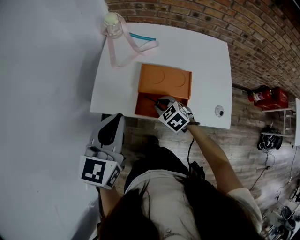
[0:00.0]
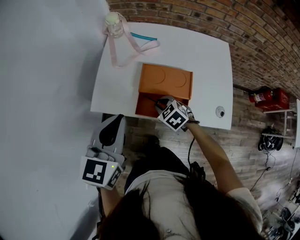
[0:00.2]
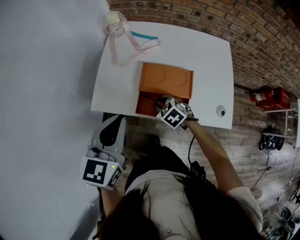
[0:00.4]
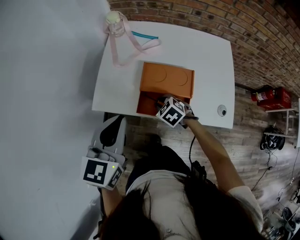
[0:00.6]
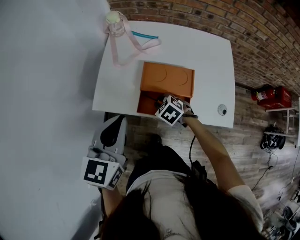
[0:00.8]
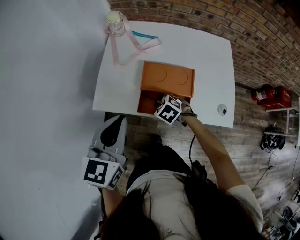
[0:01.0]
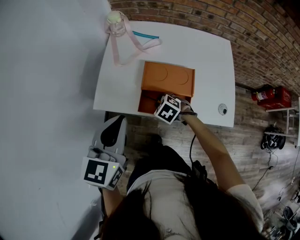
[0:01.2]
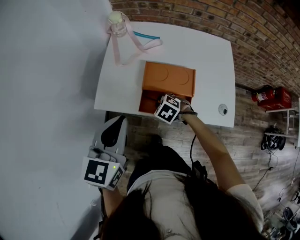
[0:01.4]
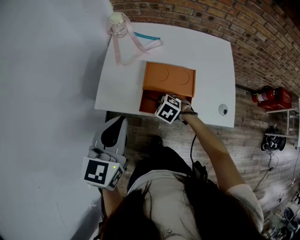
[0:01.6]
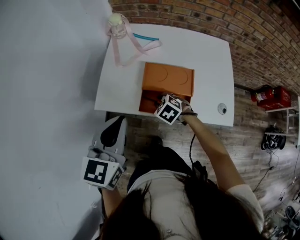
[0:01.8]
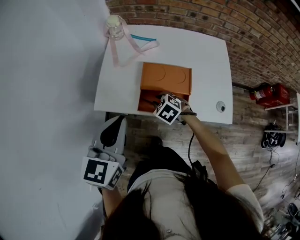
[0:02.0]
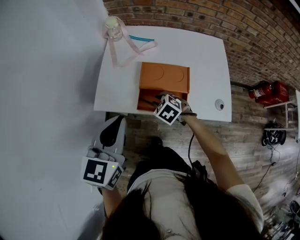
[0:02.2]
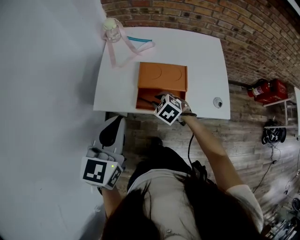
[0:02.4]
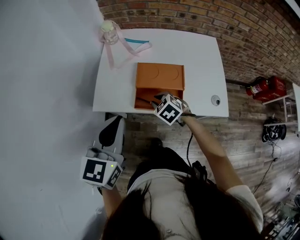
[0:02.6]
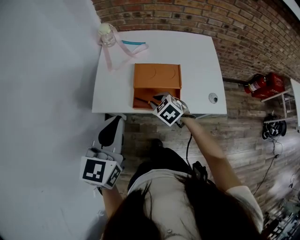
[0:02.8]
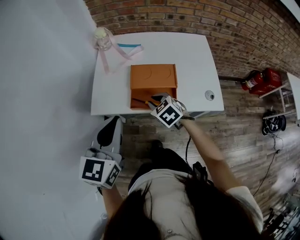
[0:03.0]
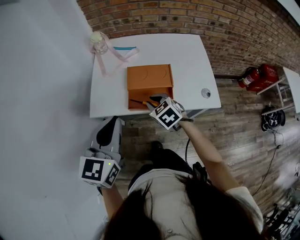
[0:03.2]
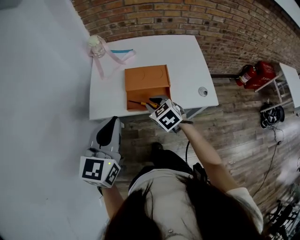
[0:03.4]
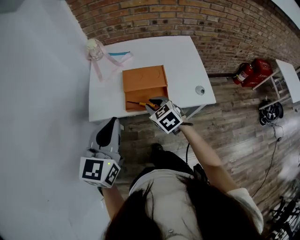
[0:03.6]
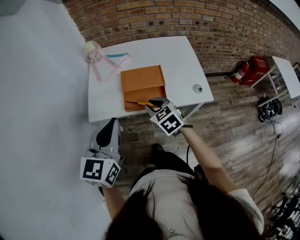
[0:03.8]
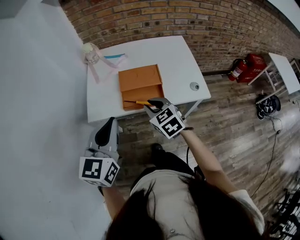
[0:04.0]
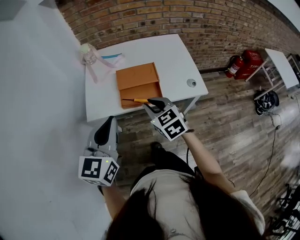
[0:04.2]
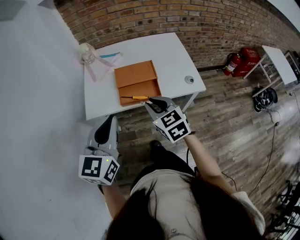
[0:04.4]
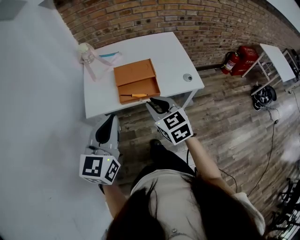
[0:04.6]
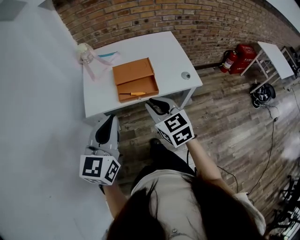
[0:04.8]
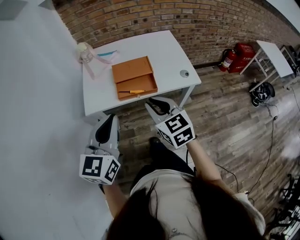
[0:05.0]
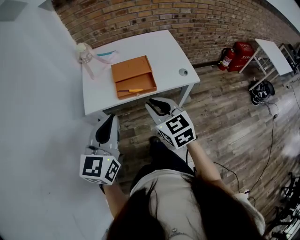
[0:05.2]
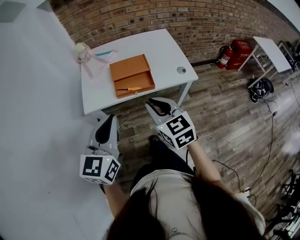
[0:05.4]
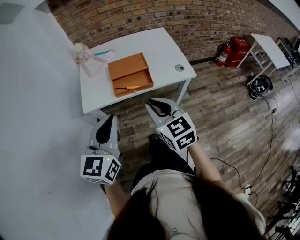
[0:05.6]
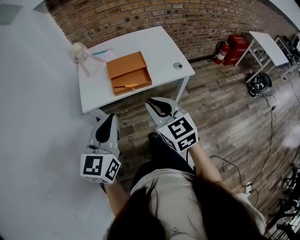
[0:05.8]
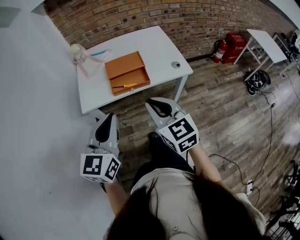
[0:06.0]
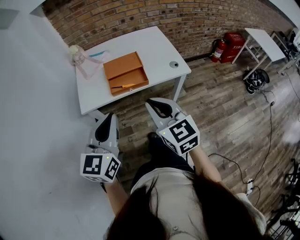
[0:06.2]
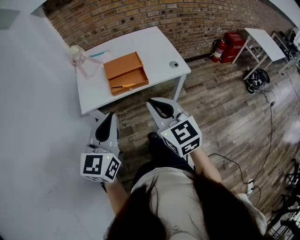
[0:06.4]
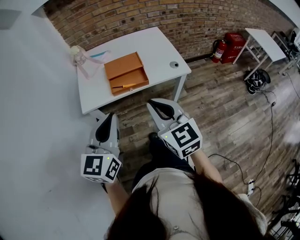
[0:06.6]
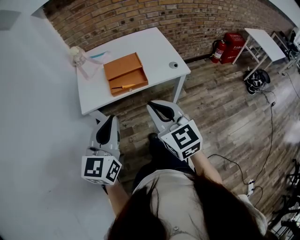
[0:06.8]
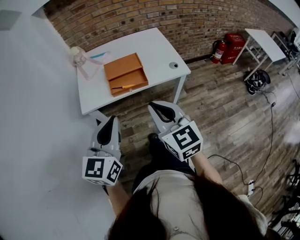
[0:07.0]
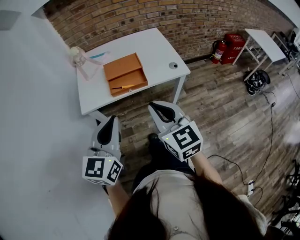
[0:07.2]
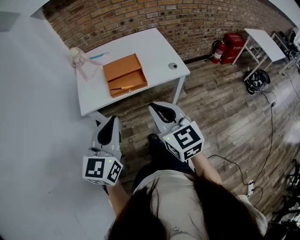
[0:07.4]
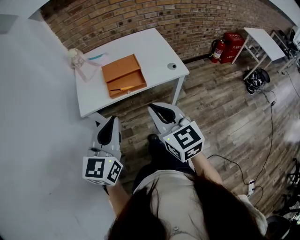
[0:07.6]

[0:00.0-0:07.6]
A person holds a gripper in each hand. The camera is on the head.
0:00.0 to 0:01.6: There are only small adjustments of the grippers.
0:01.6 to 0:03.0: The left gripper shifts approximately 5 cm backward; the right gripper is displaced upward by about 10 cm, and rotates approximately 30 degrees.
0:03.0 to 0:04.6: The left gripper moves backward, some 10 cm, while the right gripper moves backward and upward, approximately 20 cm, and swivels some 30 degrees.
0:04.6 to 0:06.0: The right gripper moves backward and upward, about 10 cm. Meanwhile the left gripper goes about 5 cm backward.
0:06.0 to 0:07.6: The grippers stay close to where they were, moving slightly.

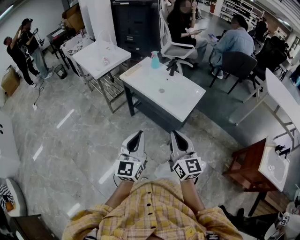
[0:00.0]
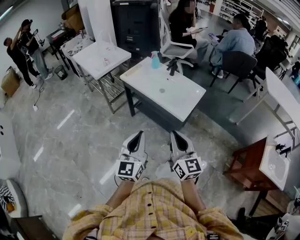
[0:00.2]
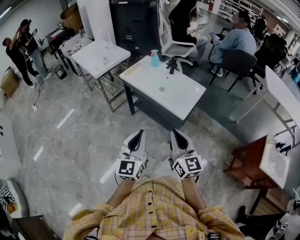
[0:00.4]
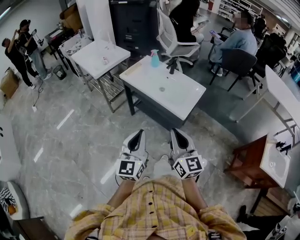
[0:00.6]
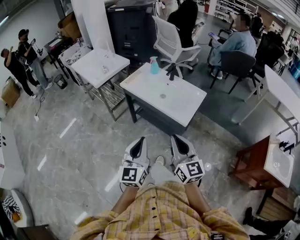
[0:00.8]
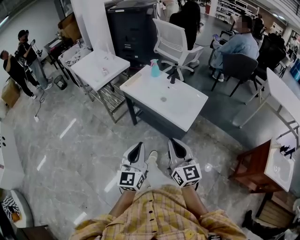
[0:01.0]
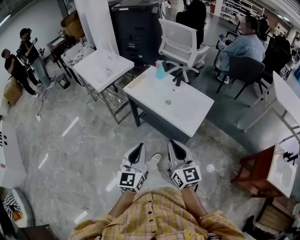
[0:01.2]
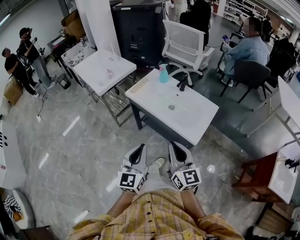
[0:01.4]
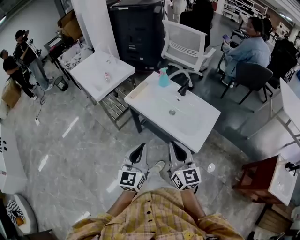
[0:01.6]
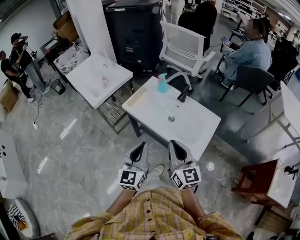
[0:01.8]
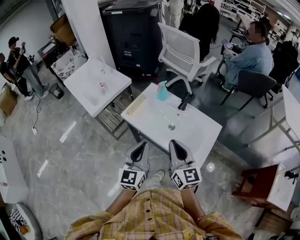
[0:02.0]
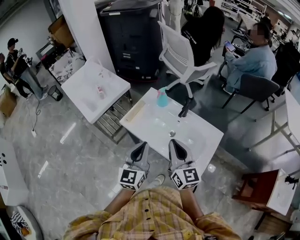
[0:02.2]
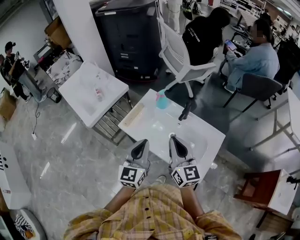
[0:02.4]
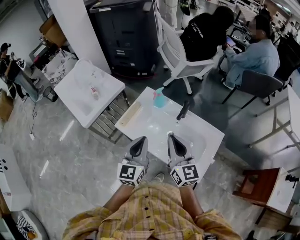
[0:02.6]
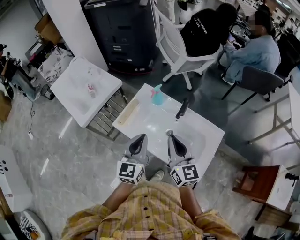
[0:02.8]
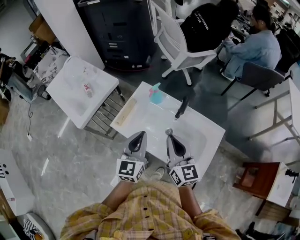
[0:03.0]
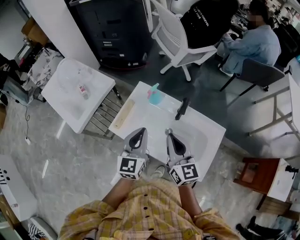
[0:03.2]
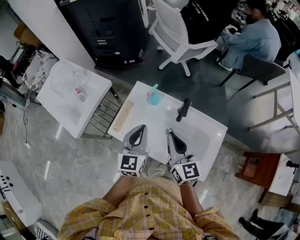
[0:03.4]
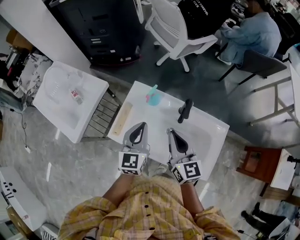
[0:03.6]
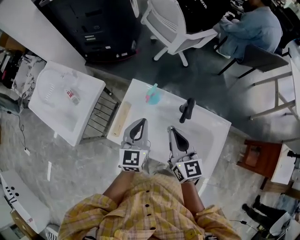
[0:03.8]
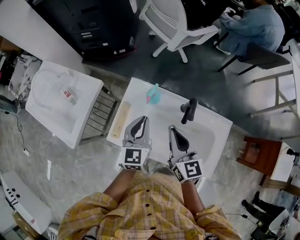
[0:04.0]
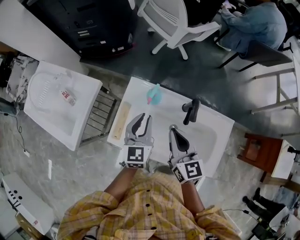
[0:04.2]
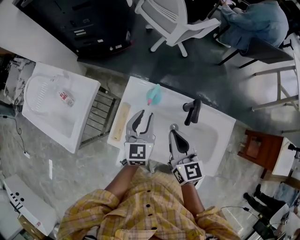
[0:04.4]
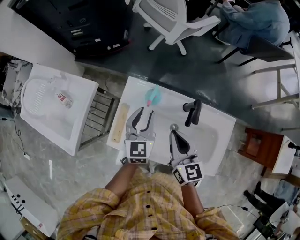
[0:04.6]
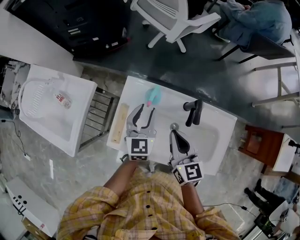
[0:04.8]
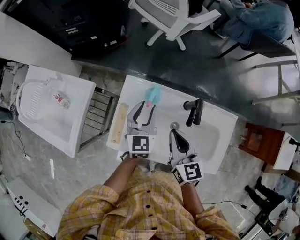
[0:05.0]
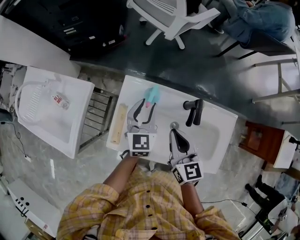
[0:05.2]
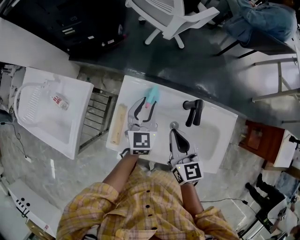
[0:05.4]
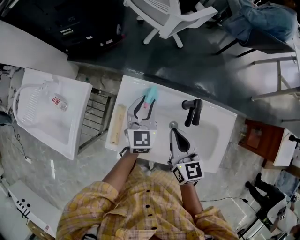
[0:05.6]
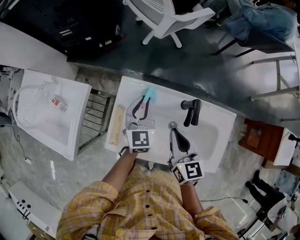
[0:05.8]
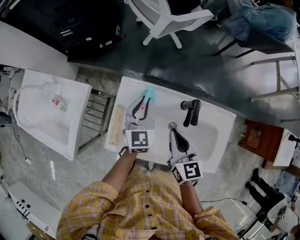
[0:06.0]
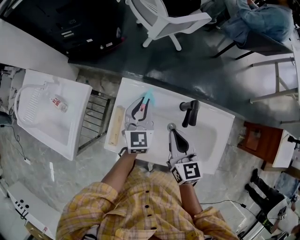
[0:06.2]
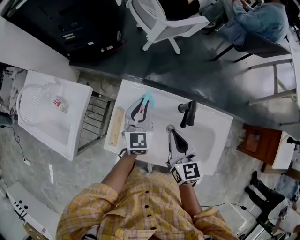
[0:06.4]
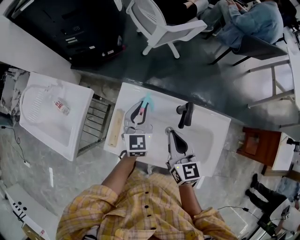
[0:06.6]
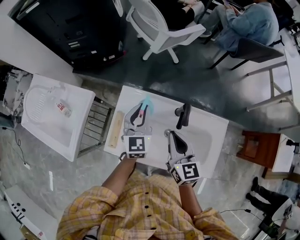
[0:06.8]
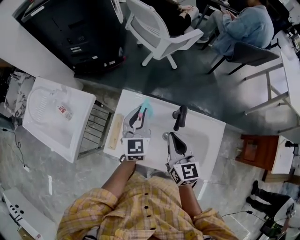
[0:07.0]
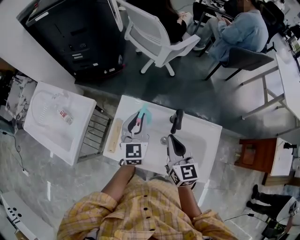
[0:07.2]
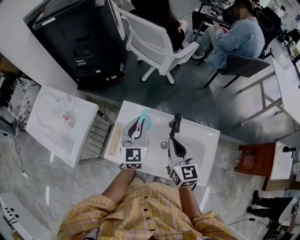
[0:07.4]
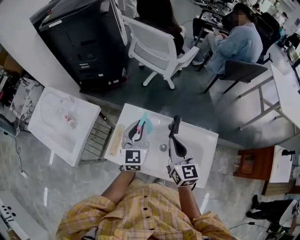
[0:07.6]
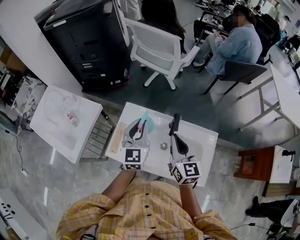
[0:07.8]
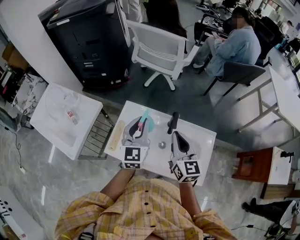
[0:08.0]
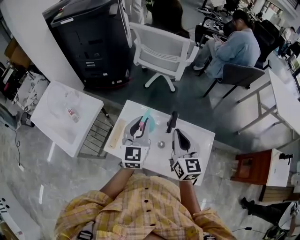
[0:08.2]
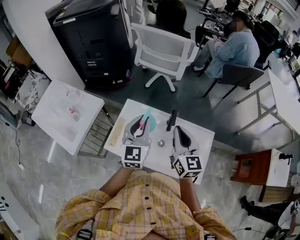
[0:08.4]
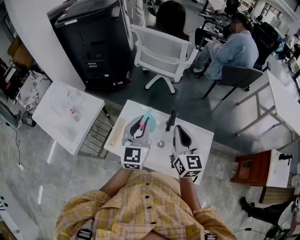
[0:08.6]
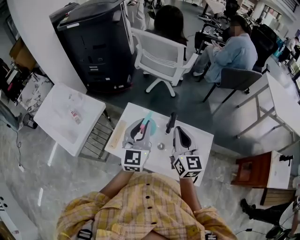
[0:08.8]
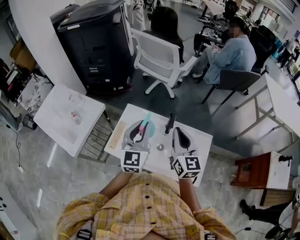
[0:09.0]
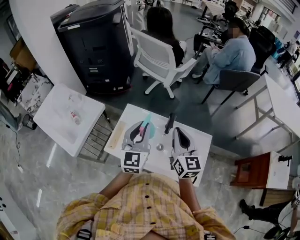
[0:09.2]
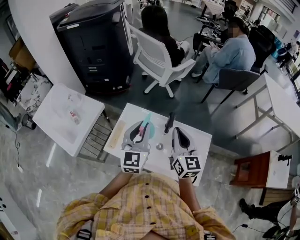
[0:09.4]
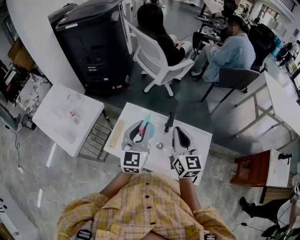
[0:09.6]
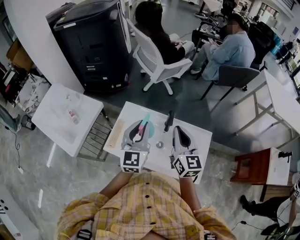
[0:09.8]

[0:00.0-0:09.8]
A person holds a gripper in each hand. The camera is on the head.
0:00.0 to 0:01.4: The left gripper shifts approximately 15 cm forward. The right gripper goes about 15 cm forward and to the left.
0:01.4 to 0:02.8: Both grippers move forward, about 35 cm.
0:02.8 to 0:04.2: The two grippers go about 20 cm forward and downward.
0:04.2 to 0:05.6: The right gripper shifts by about 5 cm. The left gripper moves forward, roughly 10 cm, and opens up.
0:05.6 to 0:07.0: The two grippers go about 5 cm upward.
0:07.0 to 0:08.4: The left gripper travels upward and backward by roughly 15 cm. Meanwhile the right gripper heads upward, covering some 10 cm.
0:08.4 to 0:09.8: There are only small adjustments of the grippers.

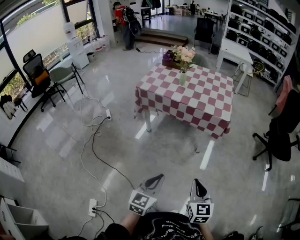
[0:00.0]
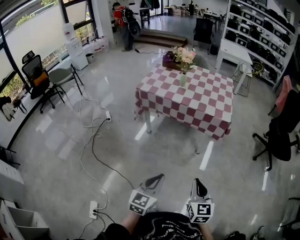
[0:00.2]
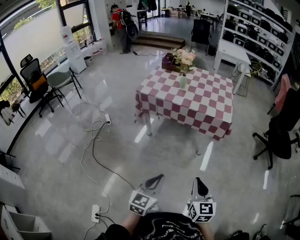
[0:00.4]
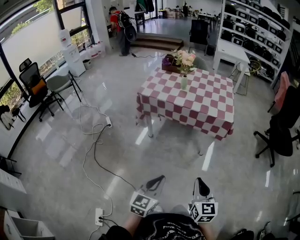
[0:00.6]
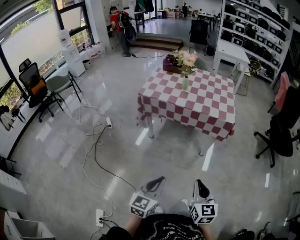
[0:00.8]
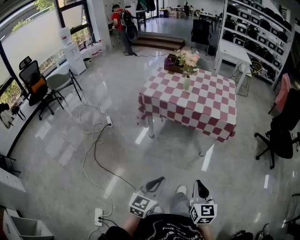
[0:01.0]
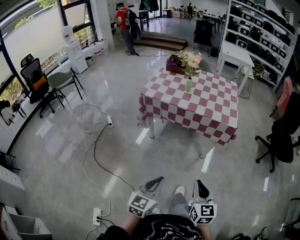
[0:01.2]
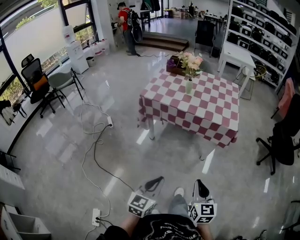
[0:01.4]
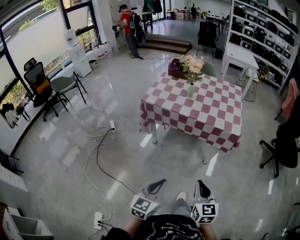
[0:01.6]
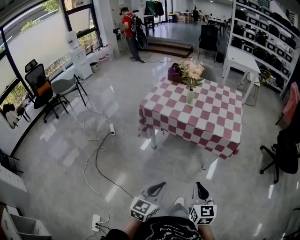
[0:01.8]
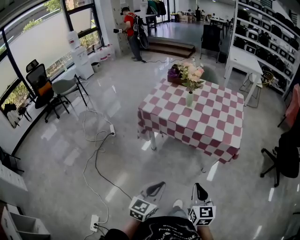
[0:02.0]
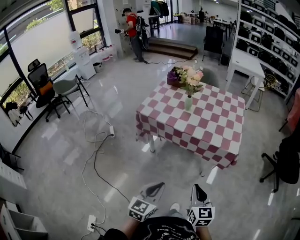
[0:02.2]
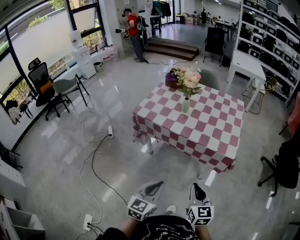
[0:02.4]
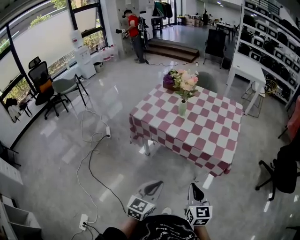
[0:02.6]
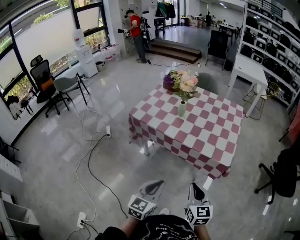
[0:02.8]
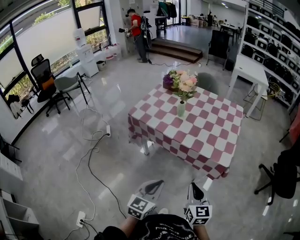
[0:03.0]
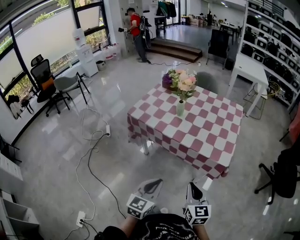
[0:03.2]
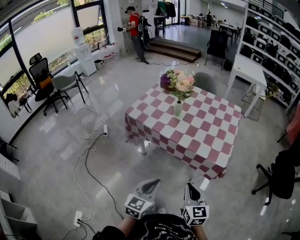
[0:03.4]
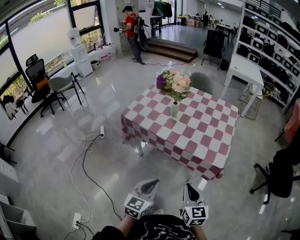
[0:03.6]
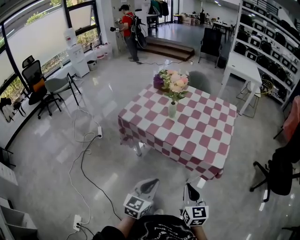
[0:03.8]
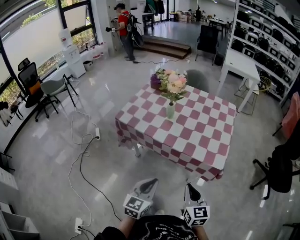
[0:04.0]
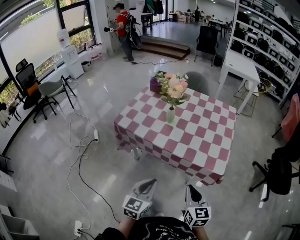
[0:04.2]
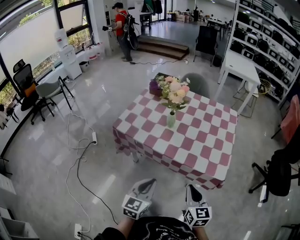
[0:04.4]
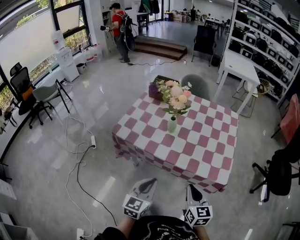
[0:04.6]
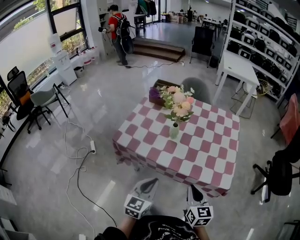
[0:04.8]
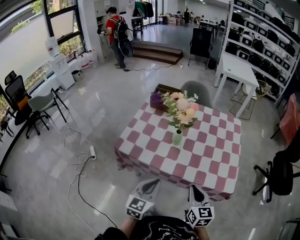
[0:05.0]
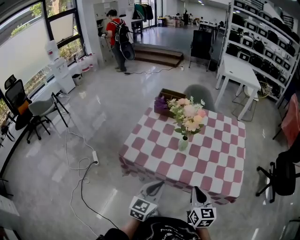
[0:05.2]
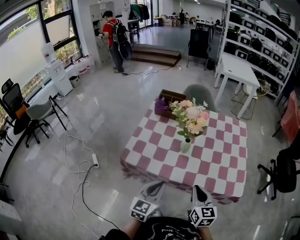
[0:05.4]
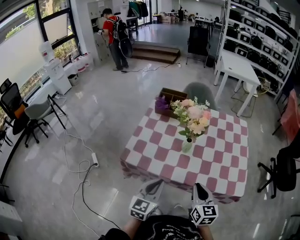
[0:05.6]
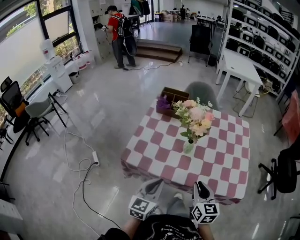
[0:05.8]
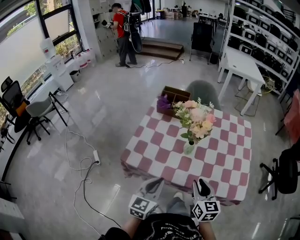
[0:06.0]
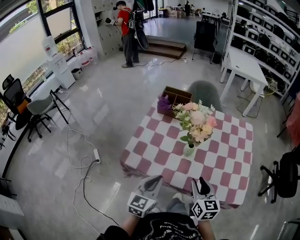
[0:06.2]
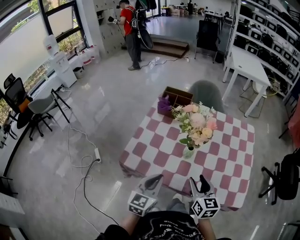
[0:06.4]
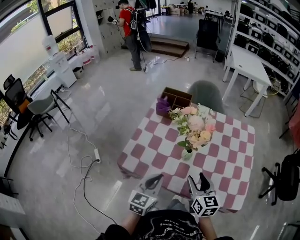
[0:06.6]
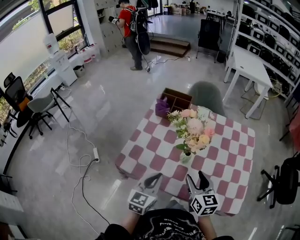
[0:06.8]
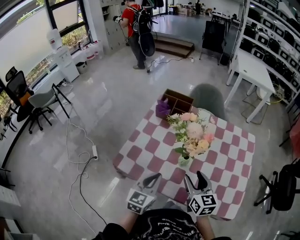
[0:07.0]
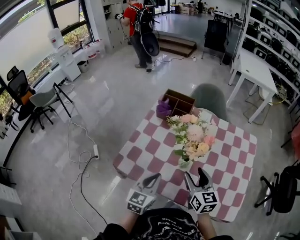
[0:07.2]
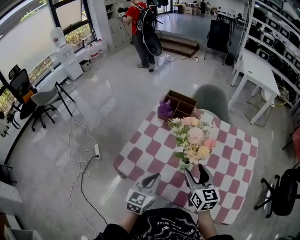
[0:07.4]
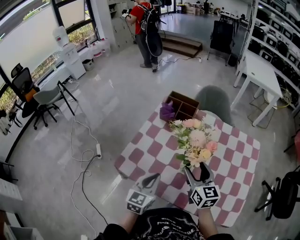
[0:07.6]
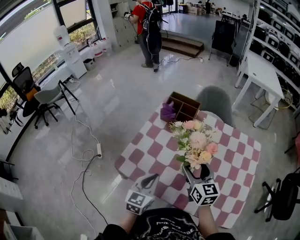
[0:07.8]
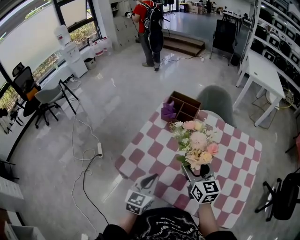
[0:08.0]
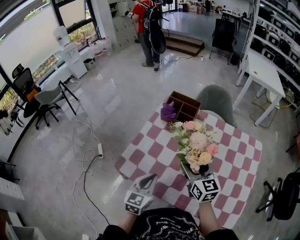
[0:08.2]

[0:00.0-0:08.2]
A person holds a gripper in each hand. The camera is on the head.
0:00.0 to 0:01.6: Both grippers move forward and to the left, about 10 cm.
0:01.6 to 0:03.2: Both grippers travel together forward and to the right, roughly 20 cm.
0:03.2 to 0:05.0: The grippers both shift forward by some 20 cm.
0:05.0 to 0:06.6: Both grippers move forward and to the left, about 15 cm. The right gripper opens.
0:06.6 to 0:08.2: The left gripper goes approximately 5 cm forward. The right gripper shifts roughly 15 cm forward.
